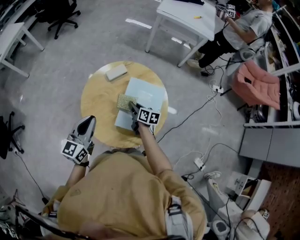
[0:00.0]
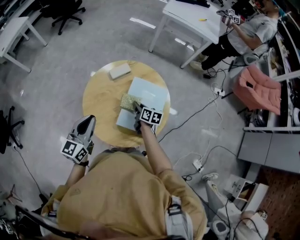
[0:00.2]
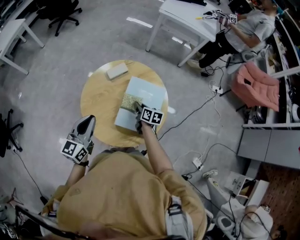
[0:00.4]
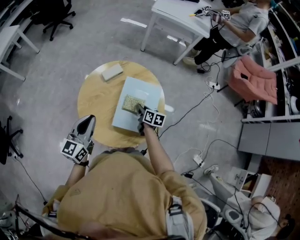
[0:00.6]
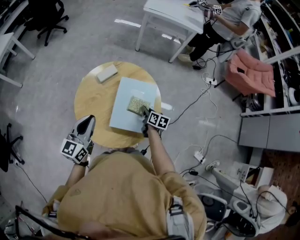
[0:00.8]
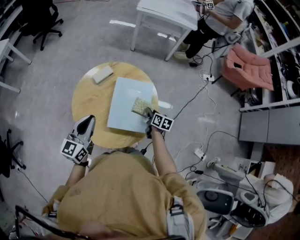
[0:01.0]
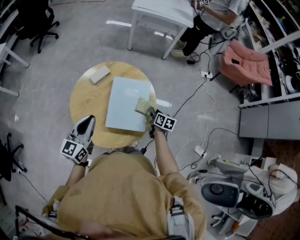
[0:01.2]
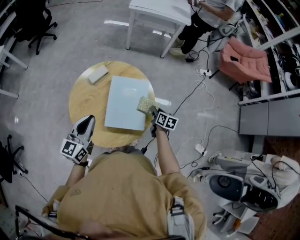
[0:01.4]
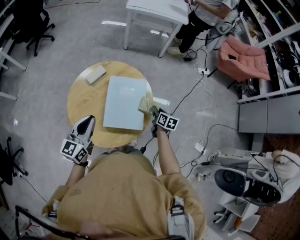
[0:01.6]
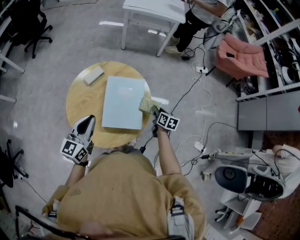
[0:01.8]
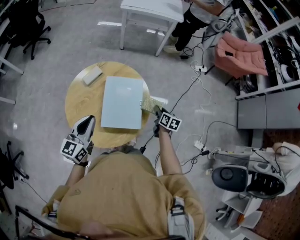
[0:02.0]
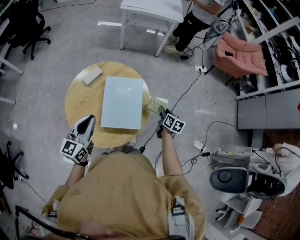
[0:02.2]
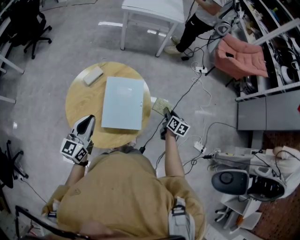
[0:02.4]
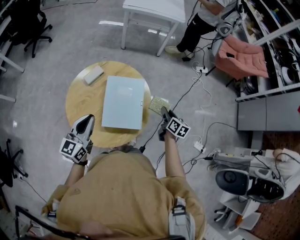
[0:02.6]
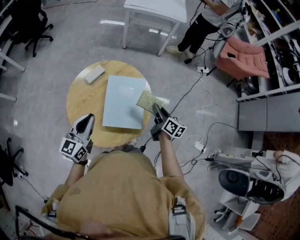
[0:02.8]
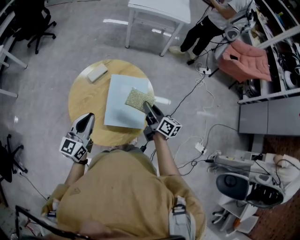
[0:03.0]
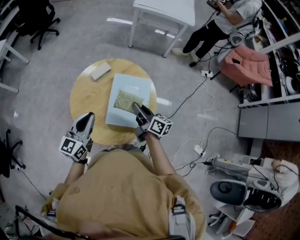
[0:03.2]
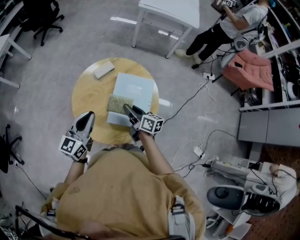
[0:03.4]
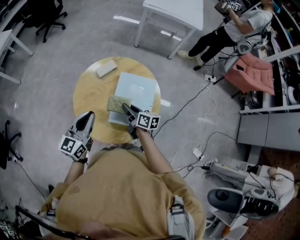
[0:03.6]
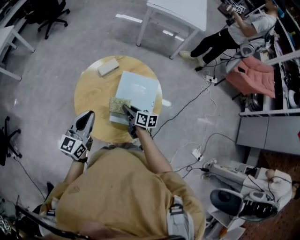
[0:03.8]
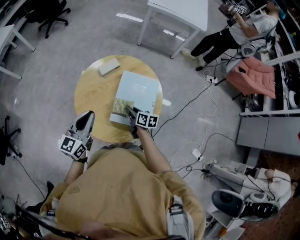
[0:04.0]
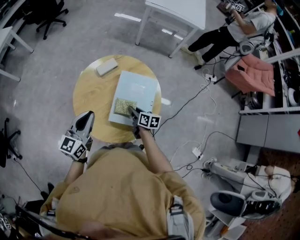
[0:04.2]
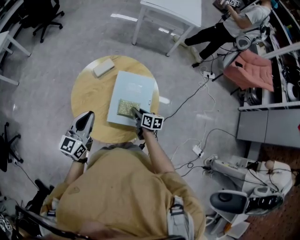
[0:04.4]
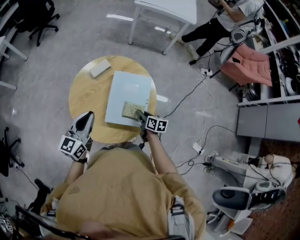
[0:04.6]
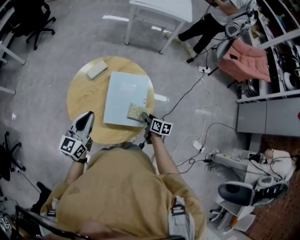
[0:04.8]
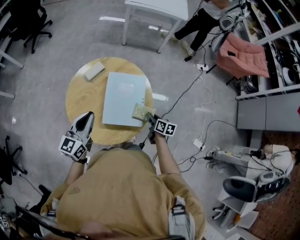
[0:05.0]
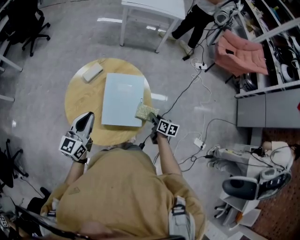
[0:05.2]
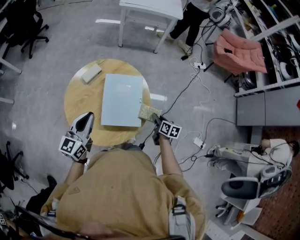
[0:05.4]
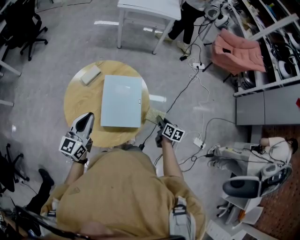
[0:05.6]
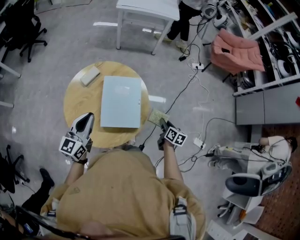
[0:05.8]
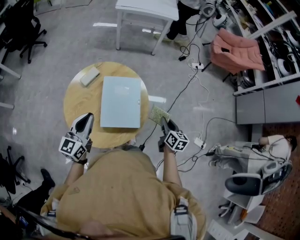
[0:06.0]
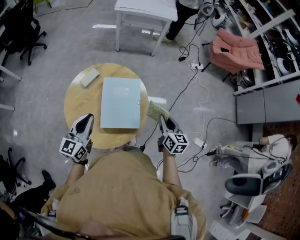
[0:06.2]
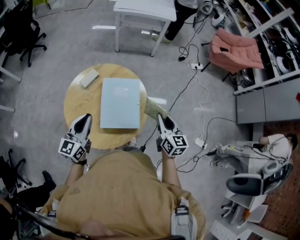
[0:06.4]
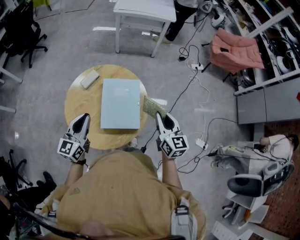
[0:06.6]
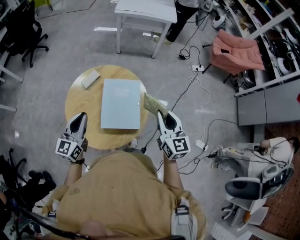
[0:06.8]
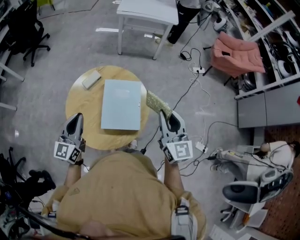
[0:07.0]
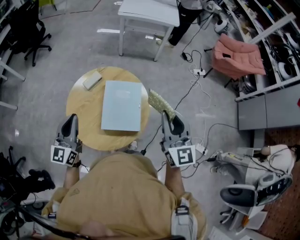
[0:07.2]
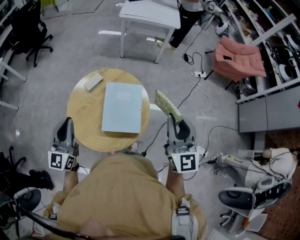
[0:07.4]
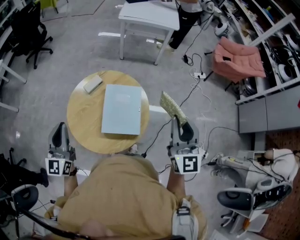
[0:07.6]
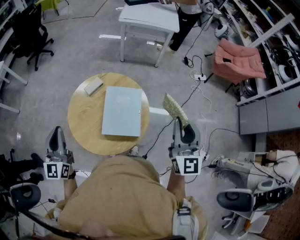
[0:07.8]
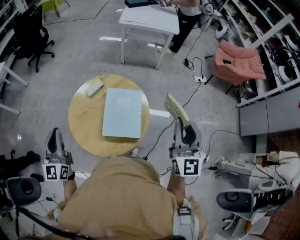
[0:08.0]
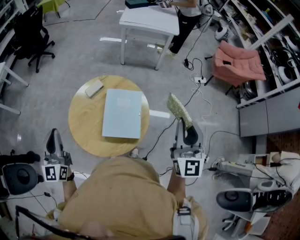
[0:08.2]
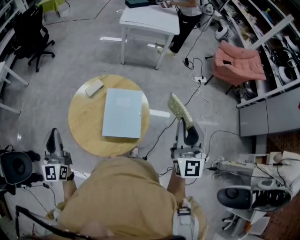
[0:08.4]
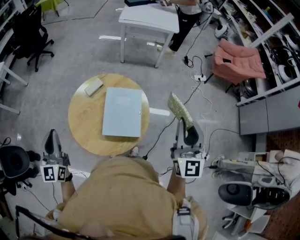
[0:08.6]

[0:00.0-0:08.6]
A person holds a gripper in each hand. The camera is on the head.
0:00.0 to 0:01.4: The right gripper is displaced to the right by approximately 25 cm, and changes its angle by some 20 degrees; the left gripper travels to the right by roughly 10 cm.
0:01.4 to 0:02.8: The right gripper moves upward, roughly 10 cm, and changes its angle by approximately 20 degrees.
0:02.8 to 0:04.4: The left gripper shifts roughly 5 cm to the left, while the right gripper heads to the left and downward, covering approximately 20 cm, and turns by about 30 degrees.
0:04.4 to 0:05.8: The right gripper travels to the right by some 25 cm, and changes its angle by some 30 degrees. Meanwhile the left gripper heads to the right, covering approximately 5 cm.
0:05.8 to 0:07.2: The right gripper moves upward, about 35 cm, and tips its fingers upward by approximately 40 degrees. The left gripper goes about 10 cm upward.
0:07.2 to 0:08.6: The left gripper travels to the left and upward by some 10 cm; the right gripper heads to the right, covering approximately 5 cm.

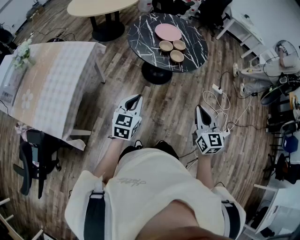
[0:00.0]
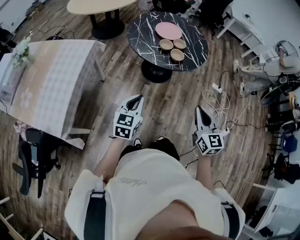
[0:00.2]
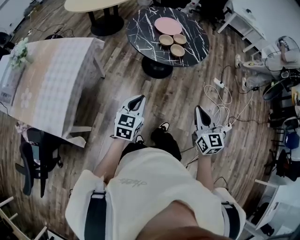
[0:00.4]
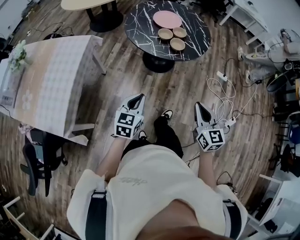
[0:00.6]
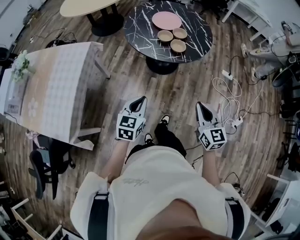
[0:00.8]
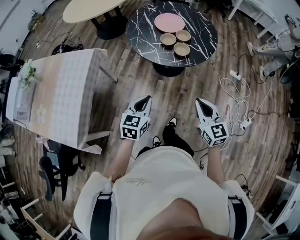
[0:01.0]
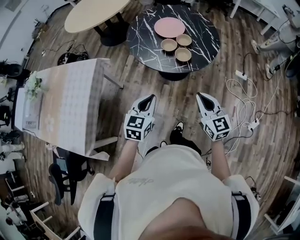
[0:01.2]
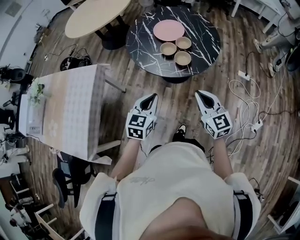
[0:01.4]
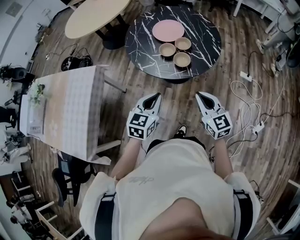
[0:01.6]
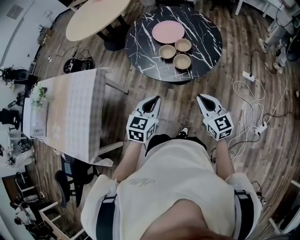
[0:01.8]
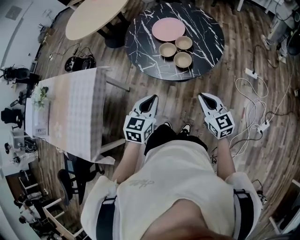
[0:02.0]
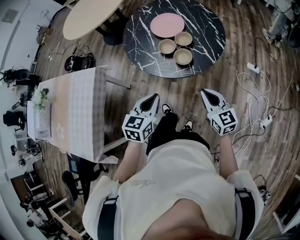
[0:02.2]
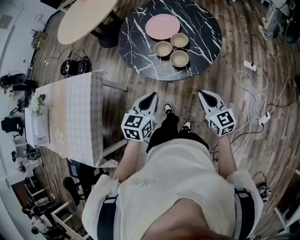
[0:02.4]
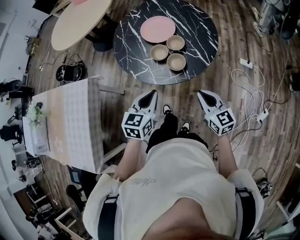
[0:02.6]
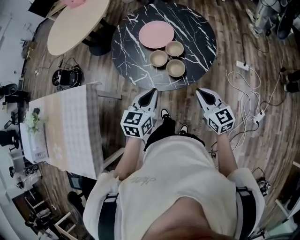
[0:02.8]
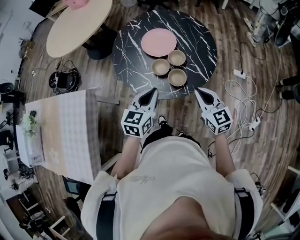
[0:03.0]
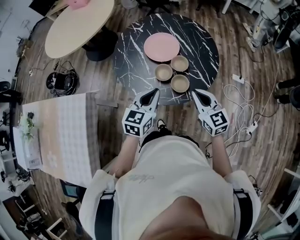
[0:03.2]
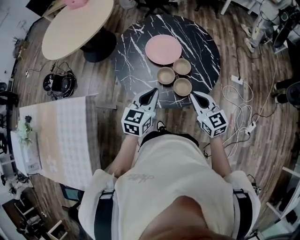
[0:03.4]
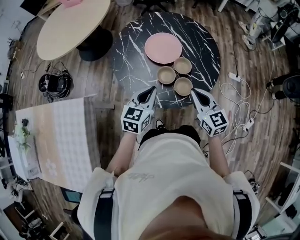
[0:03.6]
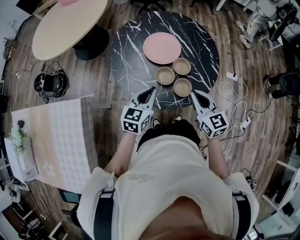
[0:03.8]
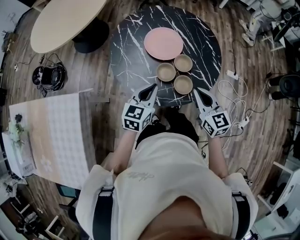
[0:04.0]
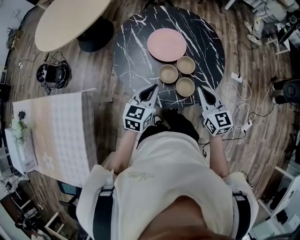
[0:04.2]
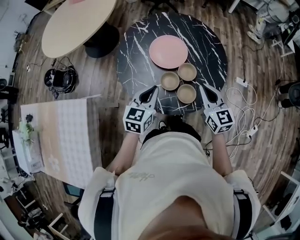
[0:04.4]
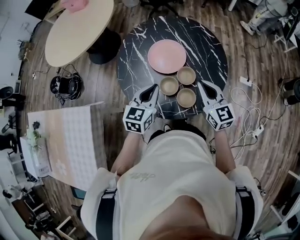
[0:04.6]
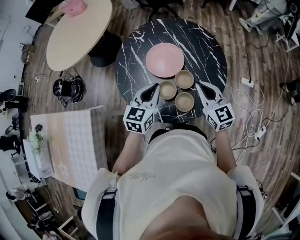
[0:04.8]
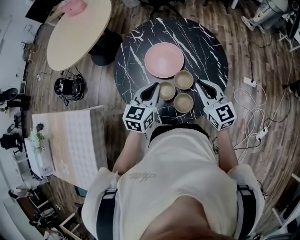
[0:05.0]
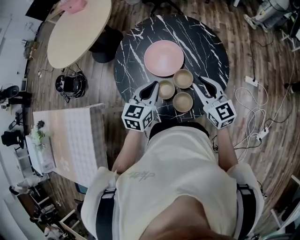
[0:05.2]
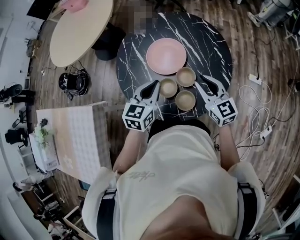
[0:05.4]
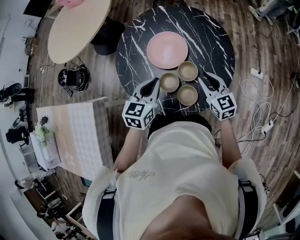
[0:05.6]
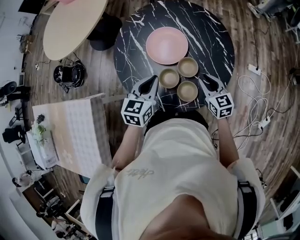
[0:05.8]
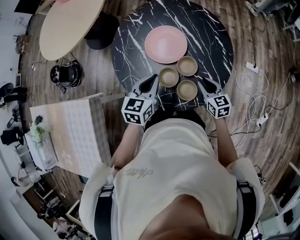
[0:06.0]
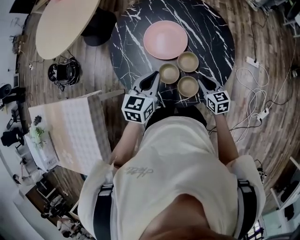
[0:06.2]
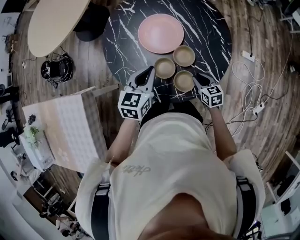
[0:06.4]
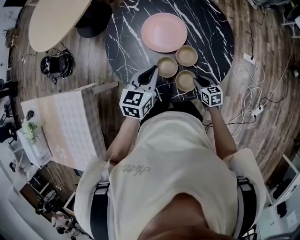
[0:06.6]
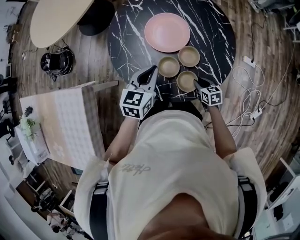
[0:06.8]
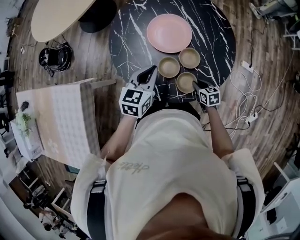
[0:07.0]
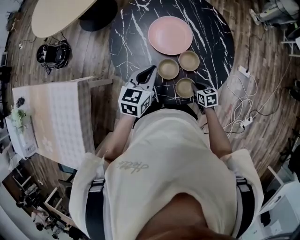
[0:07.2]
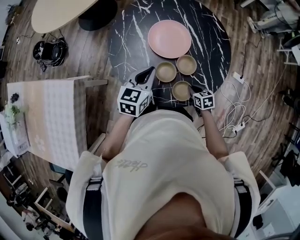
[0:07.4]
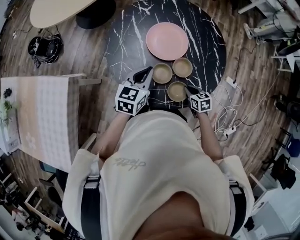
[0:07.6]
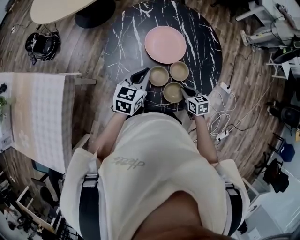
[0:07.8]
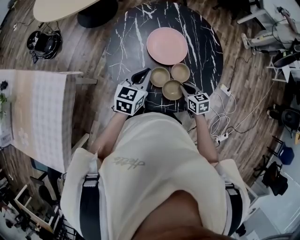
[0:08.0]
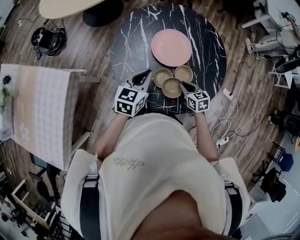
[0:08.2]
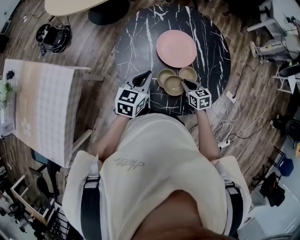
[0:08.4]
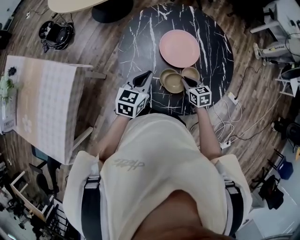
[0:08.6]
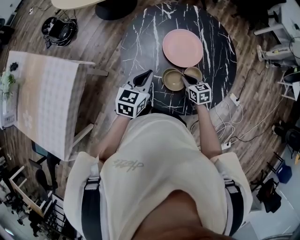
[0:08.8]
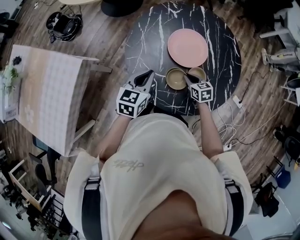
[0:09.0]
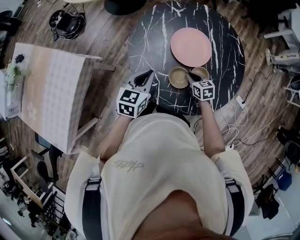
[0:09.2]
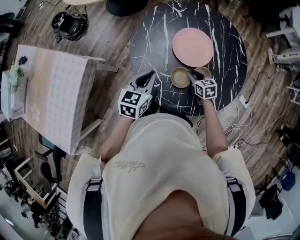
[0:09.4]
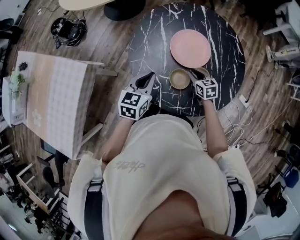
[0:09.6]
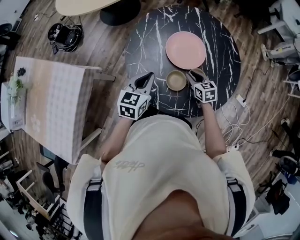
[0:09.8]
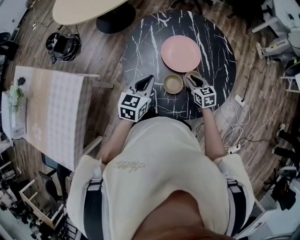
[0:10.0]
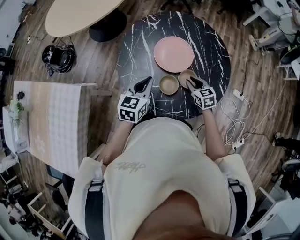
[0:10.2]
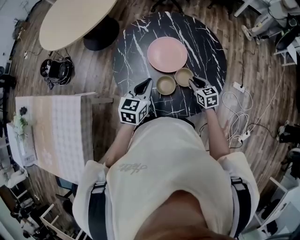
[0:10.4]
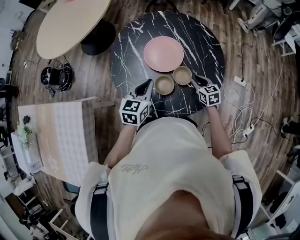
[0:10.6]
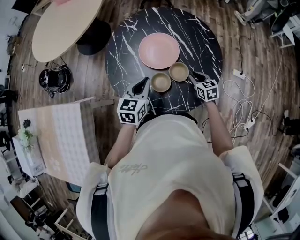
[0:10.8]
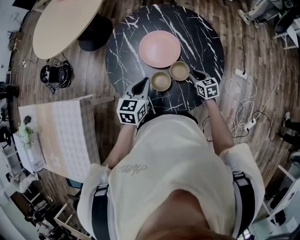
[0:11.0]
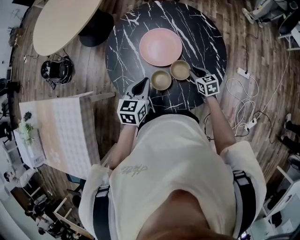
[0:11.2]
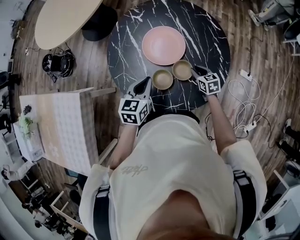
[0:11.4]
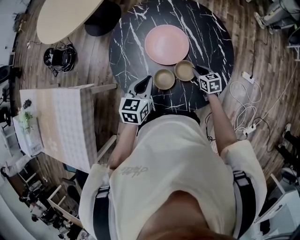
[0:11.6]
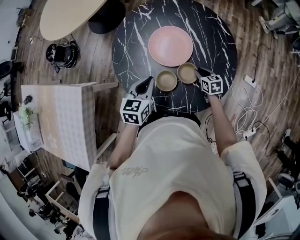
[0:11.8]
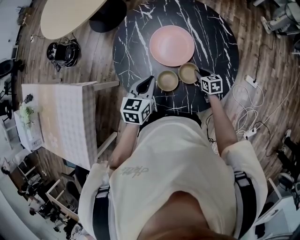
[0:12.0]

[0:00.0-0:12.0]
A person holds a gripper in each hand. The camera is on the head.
0:00.0 to 0:01.6: The right gripper is displaced forward by approximately 20 cm. Meanwhile the left gripper is displaced forward and to the right by roughly 20 cm.
0:01.6 to 0:03.0: The two grippers go about 15 cm forward.
0:03.0 to 0:04.4: The left gripper travels forward and to the left by roughly 15 cm, while the right gripper moves forward, roughly 15 cm.
0:04.4 to 0:06.0: The right gripper is displaced downward by approximately 15 cm, and opens up. The left gripper travels forward by approximately 5 cm.
0:06.0 to 0:07.6: The right gripper goes approximately 10 cm downward, and turns by some 20 degrees.
0:07.6 to 0:09.0: The right gripper shifts some 15 cm forward and to the left, while the left gripper is displaced to the left by some 5 cm.
0:09.0 to 0:10.4: The right gripper goes approximately 10 cm to the right and upward; the left gripper goes approximately 5 cm to the right.
0:10.4 to 0:12.0: The right gripper heads downward, covering roughly 10 cm; the left gripper shifts by some 5 cm.

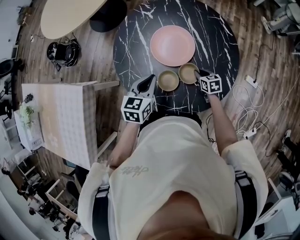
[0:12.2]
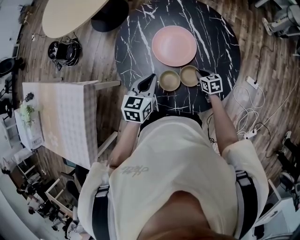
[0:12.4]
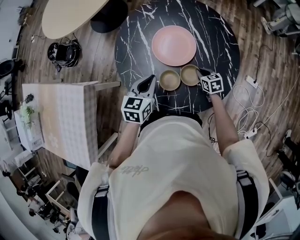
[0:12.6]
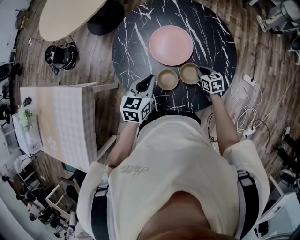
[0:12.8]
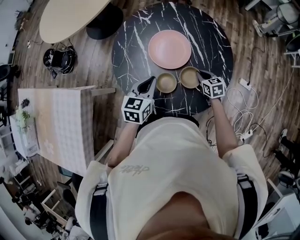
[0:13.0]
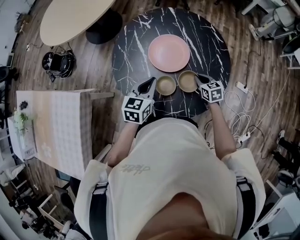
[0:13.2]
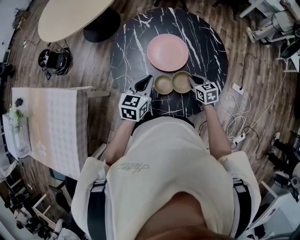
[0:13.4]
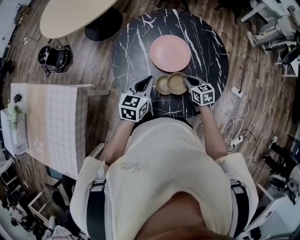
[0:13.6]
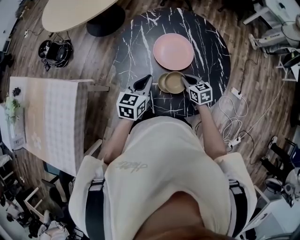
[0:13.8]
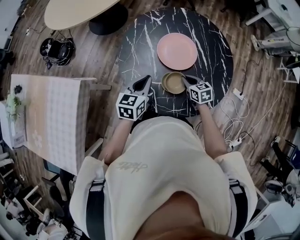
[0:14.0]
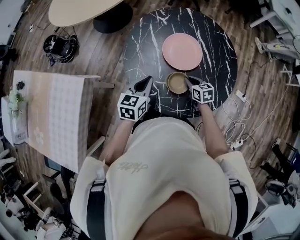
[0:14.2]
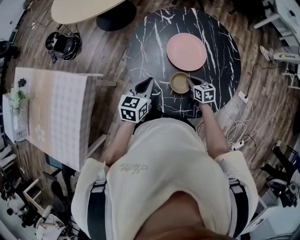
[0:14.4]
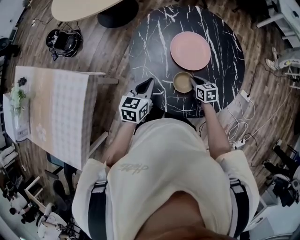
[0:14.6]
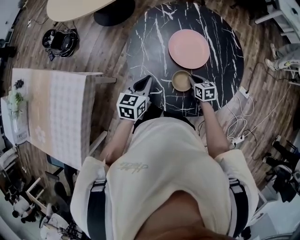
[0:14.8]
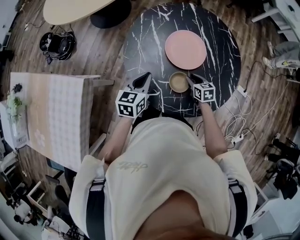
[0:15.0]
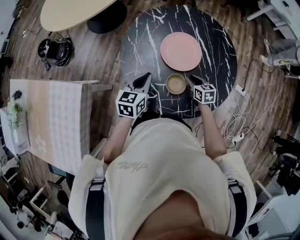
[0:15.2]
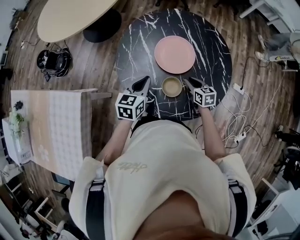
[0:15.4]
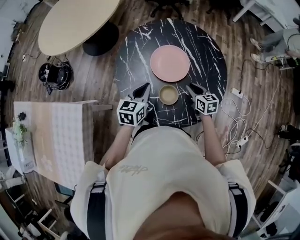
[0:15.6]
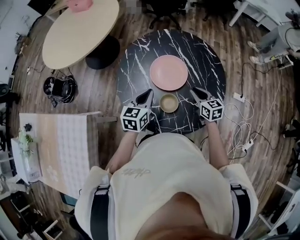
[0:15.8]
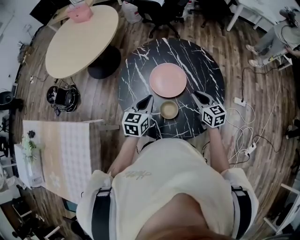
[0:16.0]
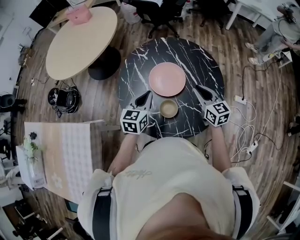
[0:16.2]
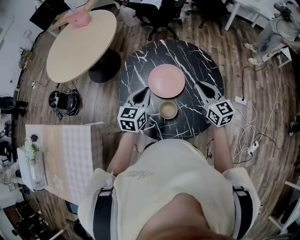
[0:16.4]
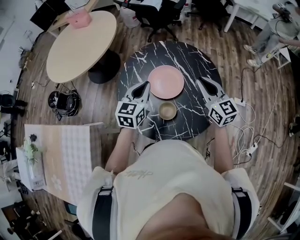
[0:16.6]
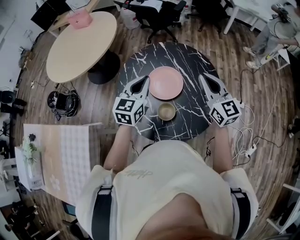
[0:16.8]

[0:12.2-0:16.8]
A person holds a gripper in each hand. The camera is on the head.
0:12.2 to 0:13.8: The left gripper changes place by some 5 cm, while the right gripper is displaced to the left and upward by roughly 15 cm.
0:13.8 to 0:15.2: The right gripper opens its fingers, while the left gripper changes place by about 5 cm.
0:15.2 to 0:16.8: The left gripper heads upward and to the right, covering approximately 20 cm, and changes its angle by approximately 20 degrees. The right gripper moves upward, roughly 35 cm, tips its fingers upward by about 40 degrees, and closes up.
